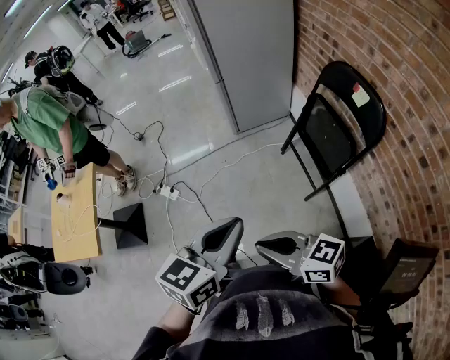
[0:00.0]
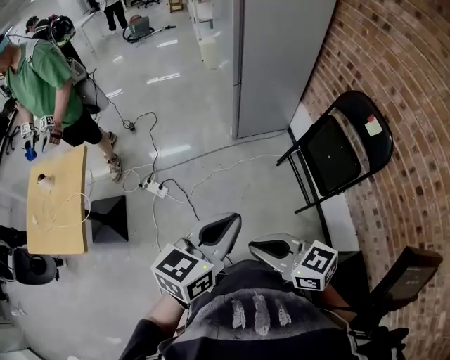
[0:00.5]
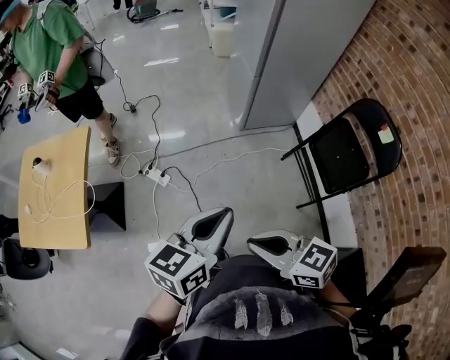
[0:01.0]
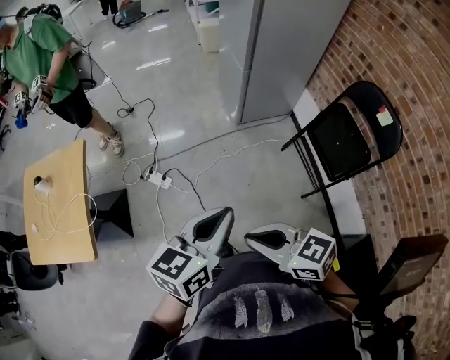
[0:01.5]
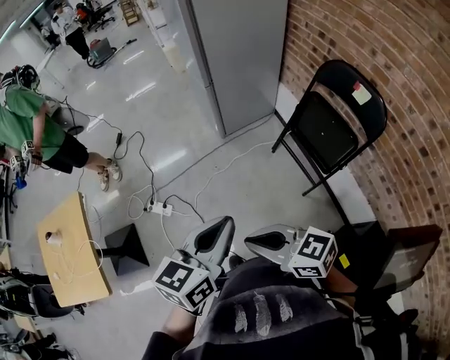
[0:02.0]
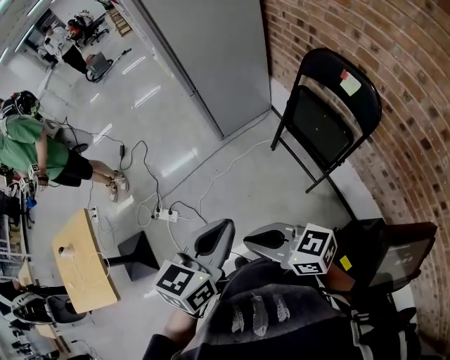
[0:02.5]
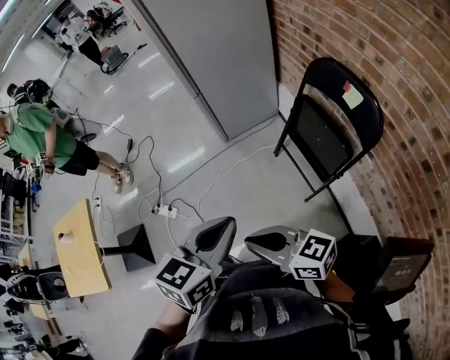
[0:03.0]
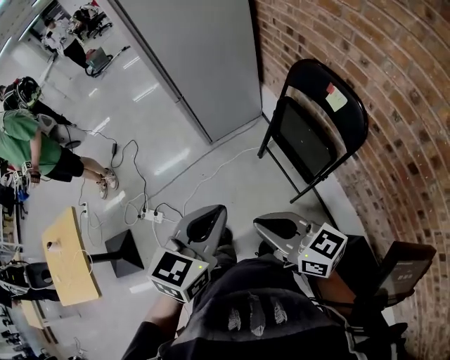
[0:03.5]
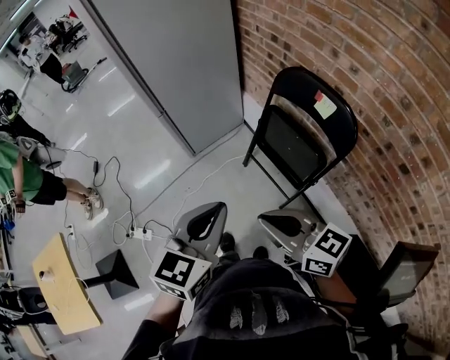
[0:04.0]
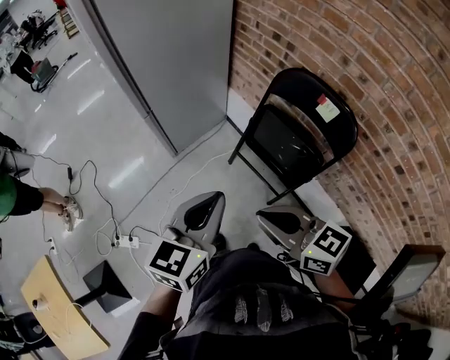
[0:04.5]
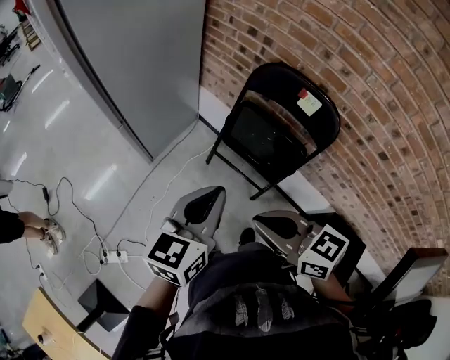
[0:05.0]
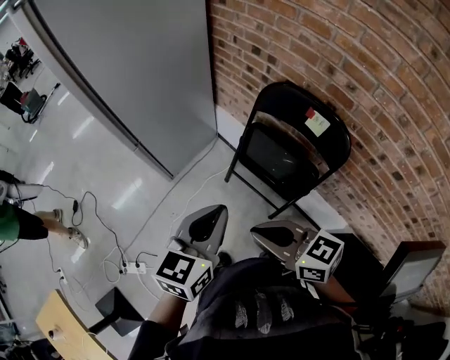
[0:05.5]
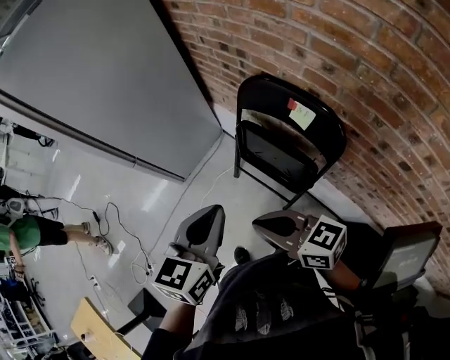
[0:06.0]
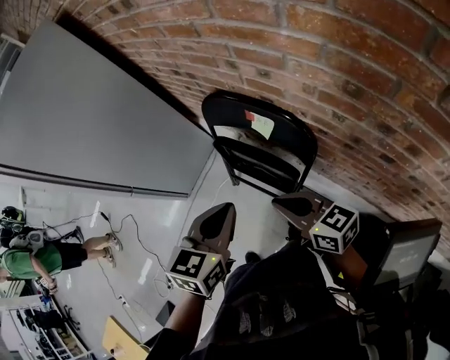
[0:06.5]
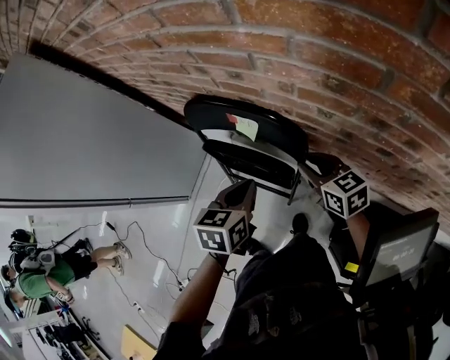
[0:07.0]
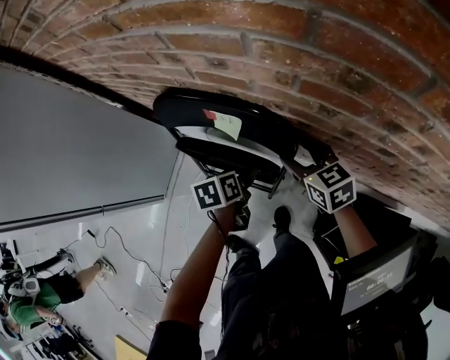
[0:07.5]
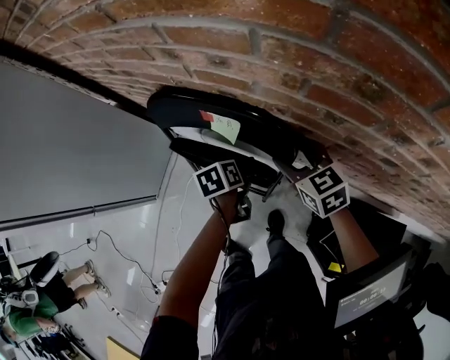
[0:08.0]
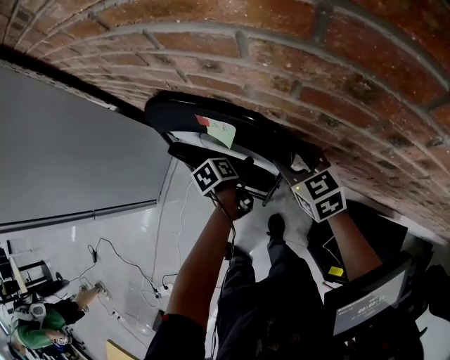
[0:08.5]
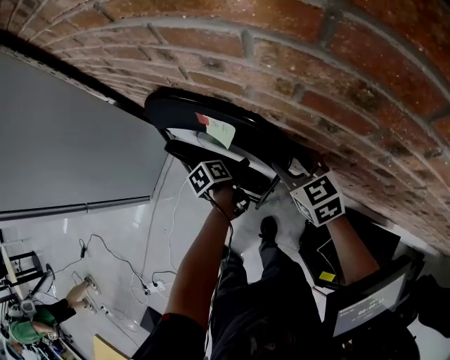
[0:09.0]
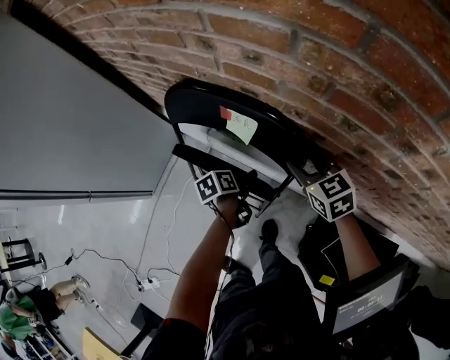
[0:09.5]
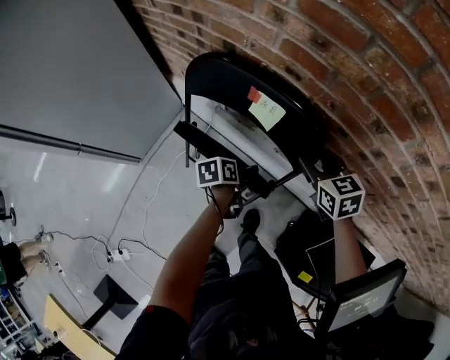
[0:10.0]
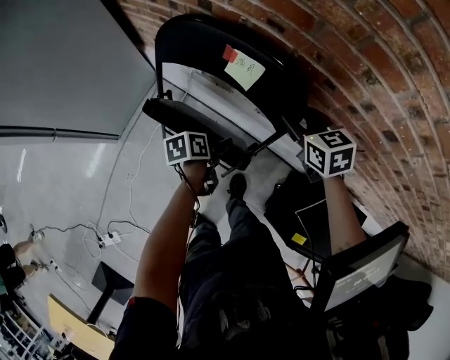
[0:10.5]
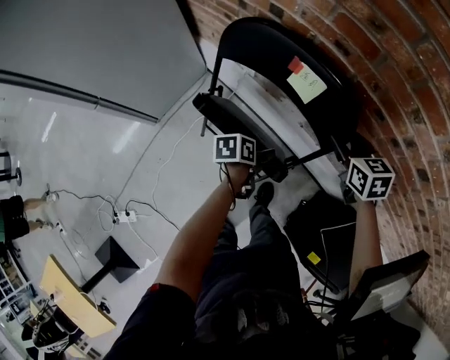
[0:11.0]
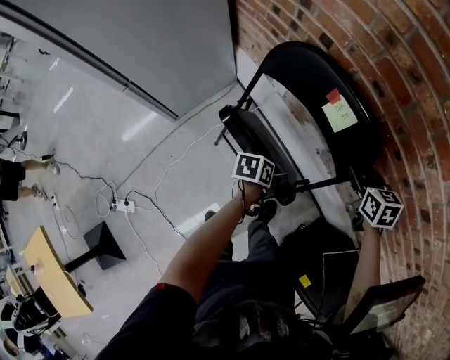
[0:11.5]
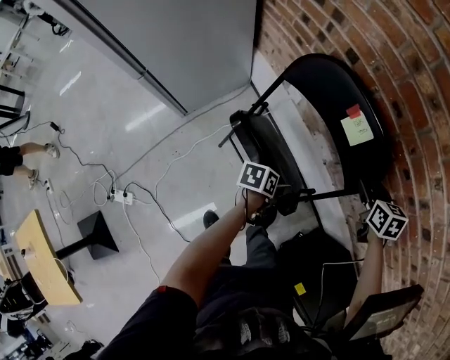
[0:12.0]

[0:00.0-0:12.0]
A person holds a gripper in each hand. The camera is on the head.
0.0 to 2.0 s: The two grippers go approximately 15 cm to the left and forward.
2.0 to 4.0 s: Both grippers move to the right and forward, roughly 25 cm. The right gripper swivels roughly 30 degrees.
4.0 to 6.0 s: The right gripper travels forward by some 15 cm; the left gripper travels forward and to the right by some 15 cm.
6.0 to 8.0 s: The left gripper is displaced downward by roughly 35 cm, tips its fingers downward by approximately 30 degrees, and opens, while the right gripper ends up some 40 cm from where it was, changes its angle by about 50 degrees, and opens.
8.0 to 10.0 s: The left gripper moves backward, approximately 10 cm.
10.0 to 12.0 s: The left gripper shifts about 10 cm backward.

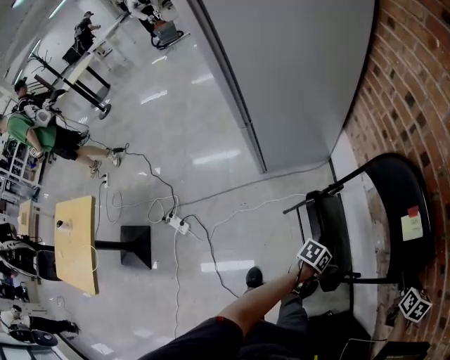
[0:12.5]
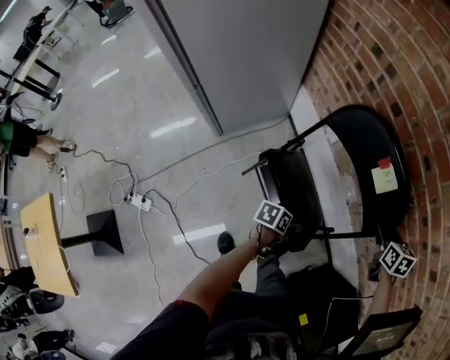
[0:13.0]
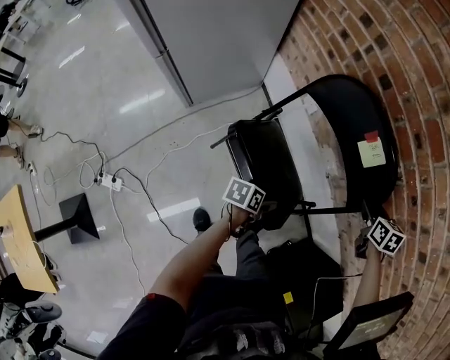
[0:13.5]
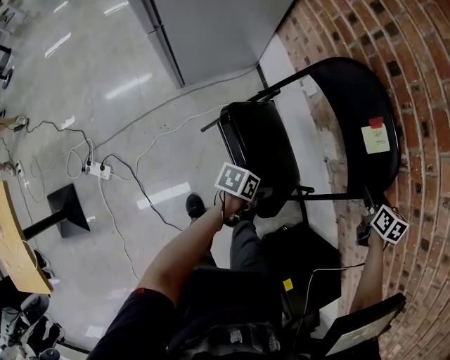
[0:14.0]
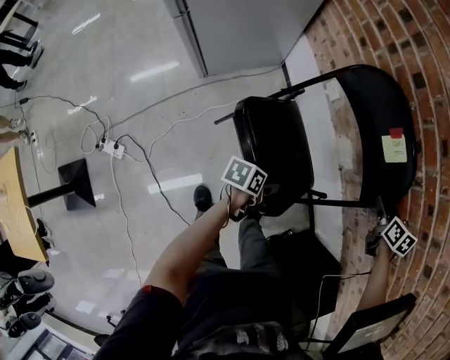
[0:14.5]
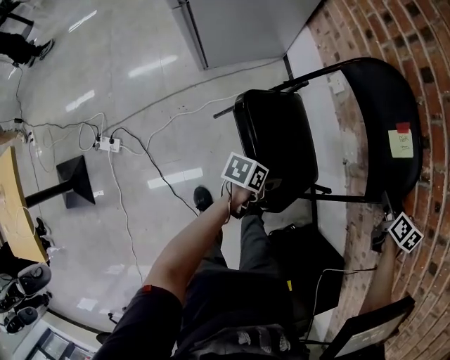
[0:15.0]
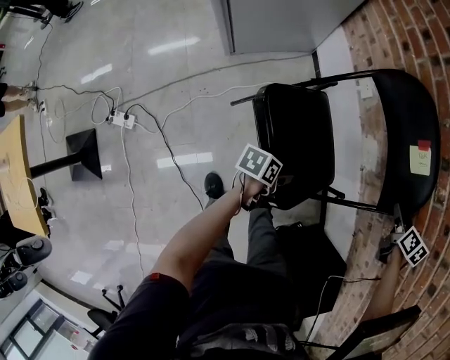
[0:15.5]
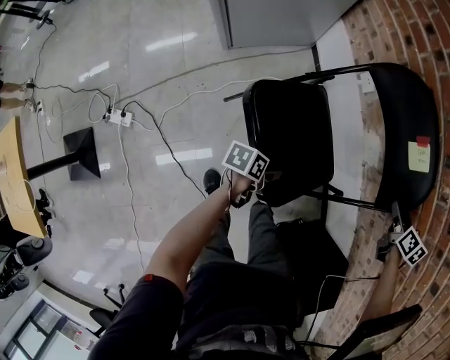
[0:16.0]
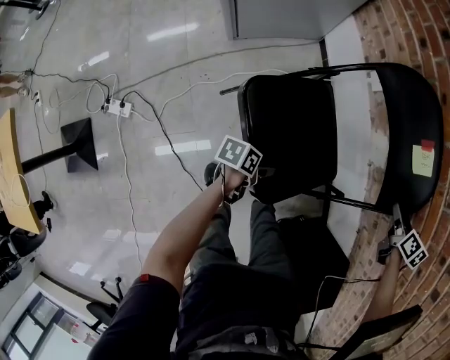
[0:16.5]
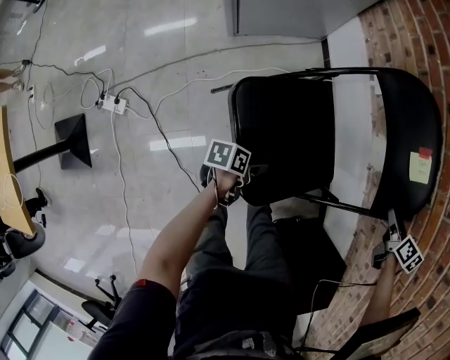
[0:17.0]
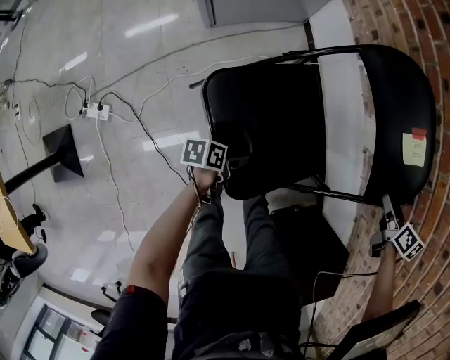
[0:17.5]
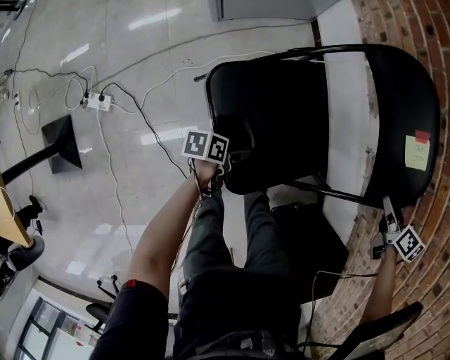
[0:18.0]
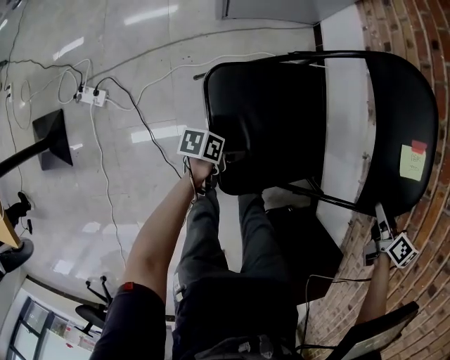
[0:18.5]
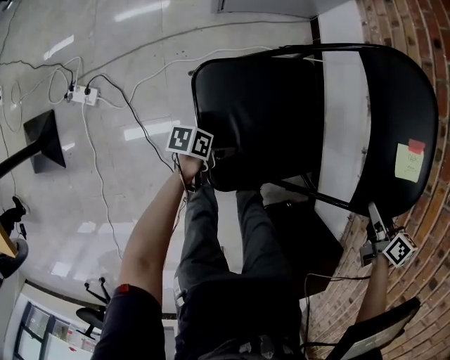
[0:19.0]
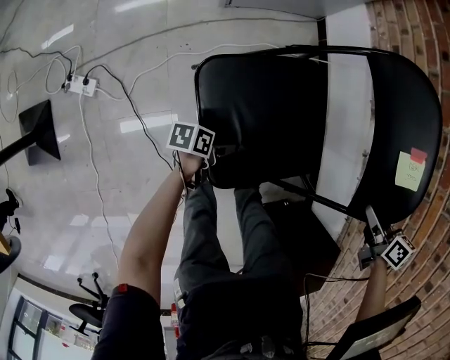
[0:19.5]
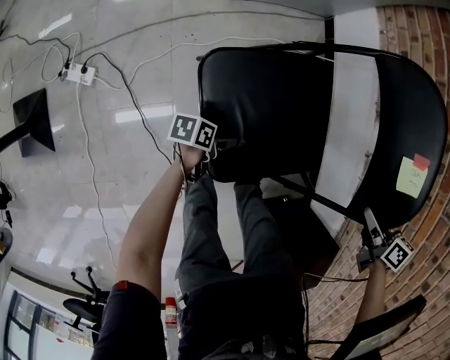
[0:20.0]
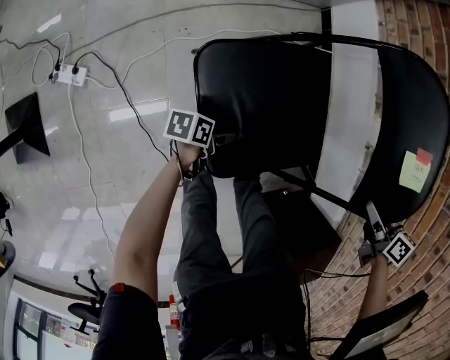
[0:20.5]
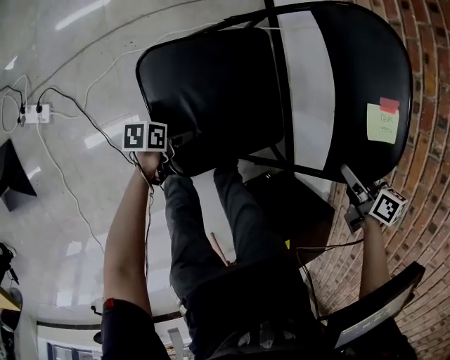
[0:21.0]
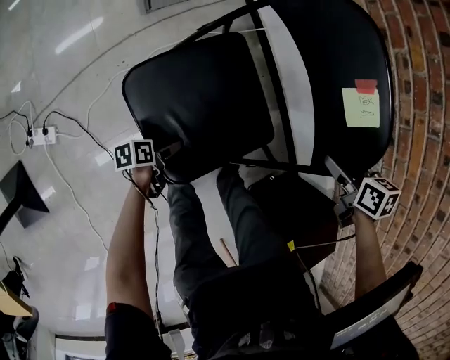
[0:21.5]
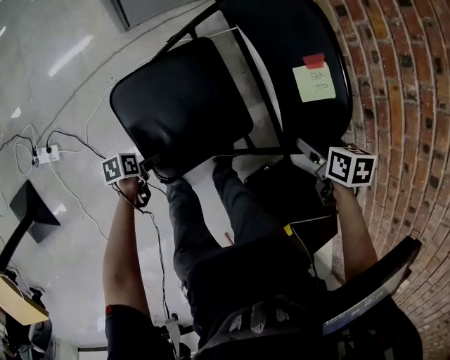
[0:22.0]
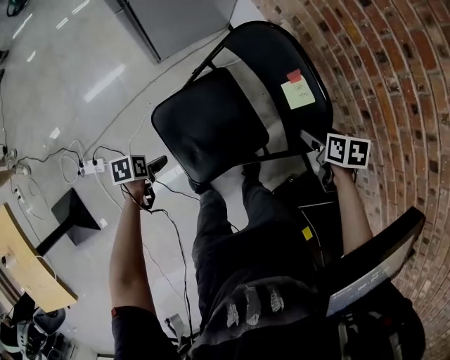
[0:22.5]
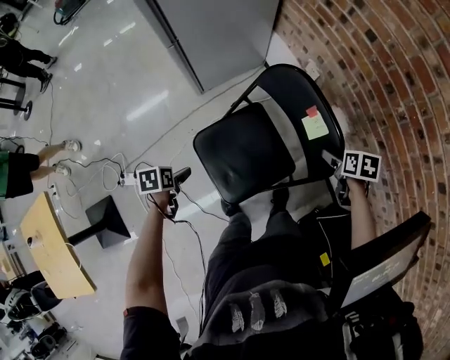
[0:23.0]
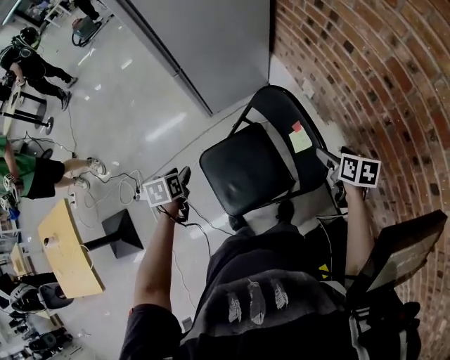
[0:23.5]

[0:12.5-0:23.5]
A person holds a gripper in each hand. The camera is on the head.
12.5 to 14.5 s: The right gripper moves approximately 5 cm. Meanwhile the left gripper moves downward and backward, about 10 cm.
14.5 to 16.0 s: The left gripper travels downward and backward by some 10 cm.
16.0 to 18.0 s: The right gripper heads backward, covering about 5 cm. Meanwhile the left gripper shifts approximately 15 cm downward, backward and to the left.
18.0 to 20.0 s: The left gripper shifts roughly 10 cm downward, to the left and backward. The right gripper shifts approximately 15 cm to the left and backward.
20.0 to 21.5 s: The right gripper opens its fingers.
21.5 to 23.5 s: The left gripper is displaced upward by approximately 40 cm, rotates about 50 degrees, and closes up. Meanwhile the right gripper goes roughly 15 cm upward, and opens up.

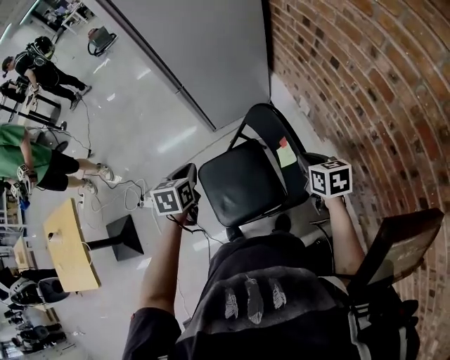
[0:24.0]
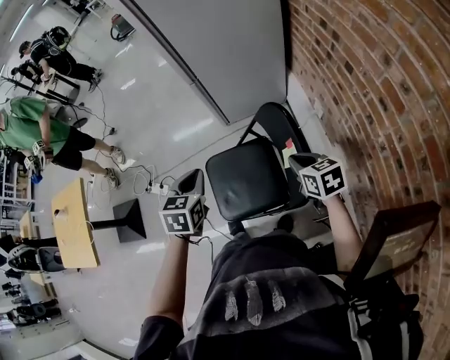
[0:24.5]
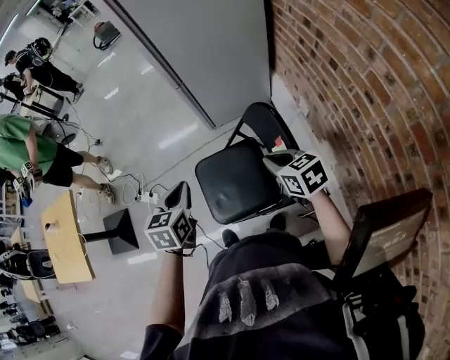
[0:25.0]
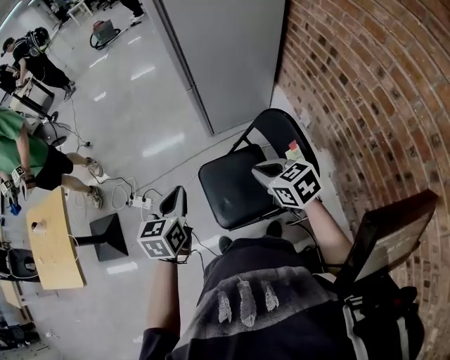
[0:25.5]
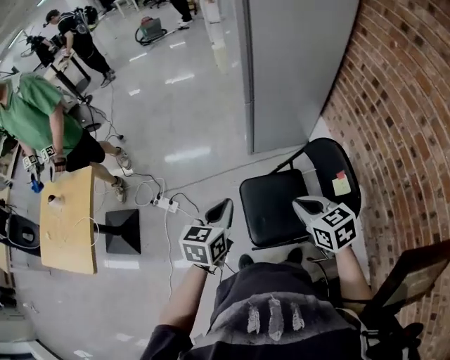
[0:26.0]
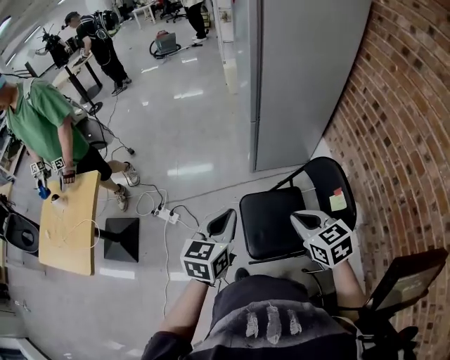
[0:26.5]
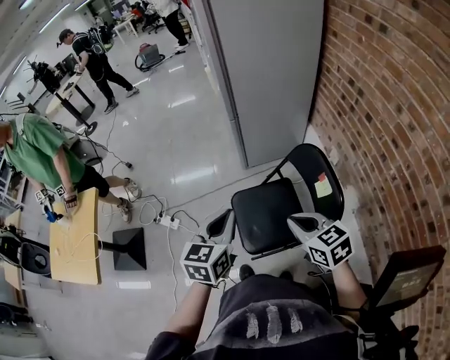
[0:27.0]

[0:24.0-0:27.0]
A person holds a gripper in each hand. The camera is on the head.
24.0 to 25.5 s: The left gripper travels to the left, backward and upward by approximately 15 cm, while the right gripper travels to the left by about 20 cm, and changes its angle by some 30 degrees.
25.5 to 27.0 s: The left gripper travels upward and backward by about 10 cm, while the right gripper shifts about 10 cm backward.

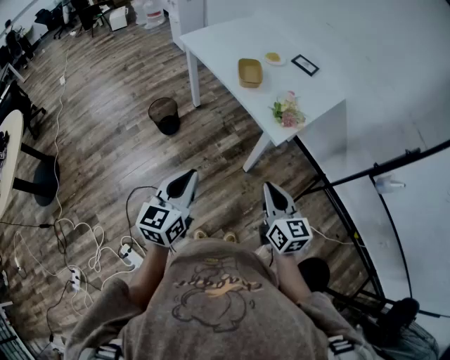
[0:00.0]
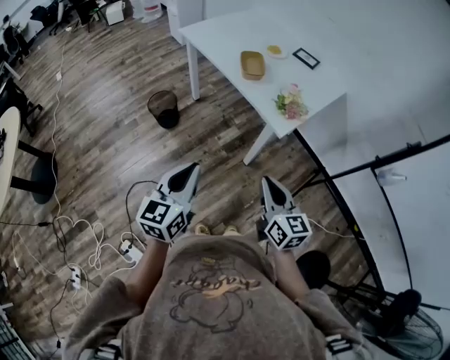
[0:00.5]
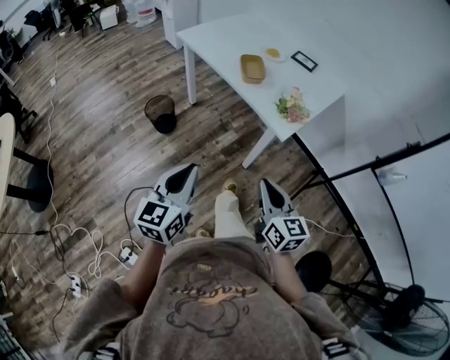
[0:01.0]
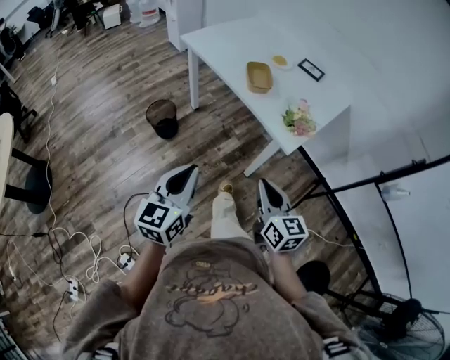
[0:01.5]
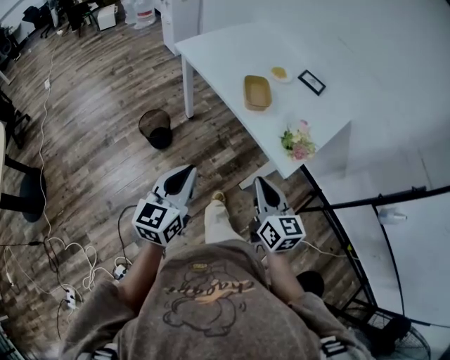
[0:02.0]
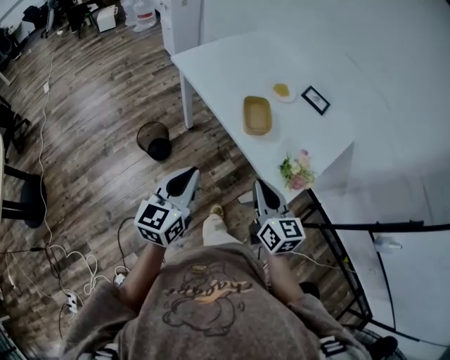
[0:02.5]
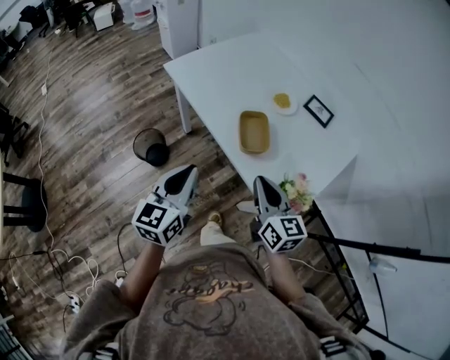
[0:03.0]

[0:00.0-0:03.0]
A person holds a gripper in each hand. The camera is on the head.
0.0 to 1.5 s: Both grippers travel together to the left and forward, some 10 cm.
1.5 to 3.0 s: Both grippers move forward, some 35 cm.
